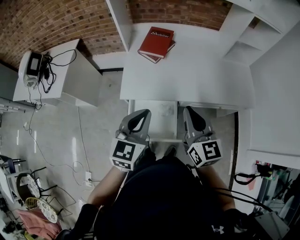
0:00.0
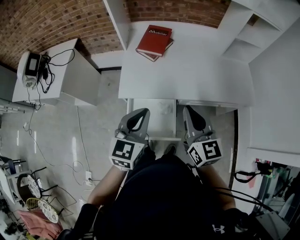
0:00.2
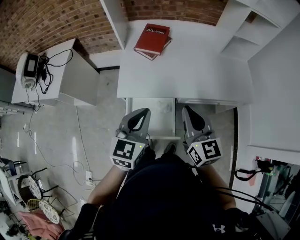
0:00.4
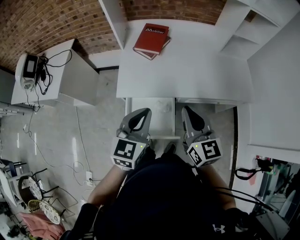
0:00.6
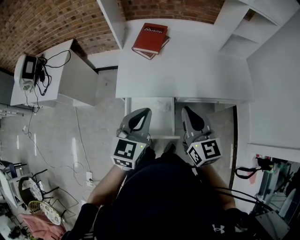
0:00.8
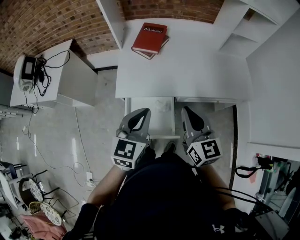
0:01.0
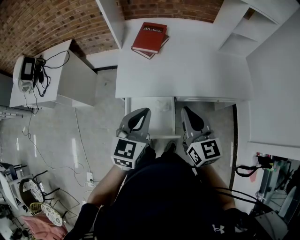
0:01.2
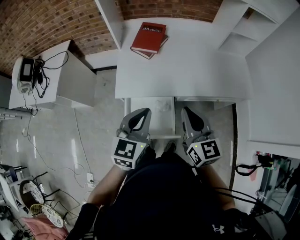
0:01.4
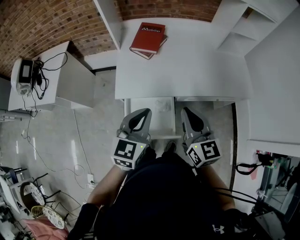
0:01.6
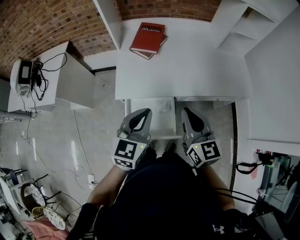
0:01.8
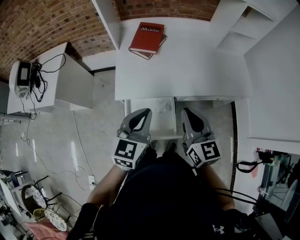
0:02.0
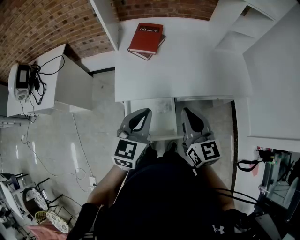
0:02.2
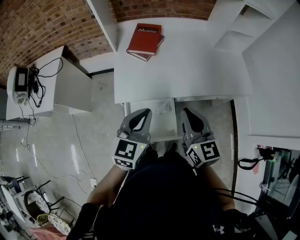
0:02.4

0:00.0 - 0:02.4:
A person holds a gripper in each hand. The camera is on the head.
0:00.0 - 0:02.4: The grippers move only a little.

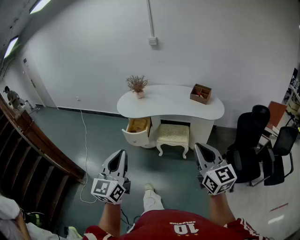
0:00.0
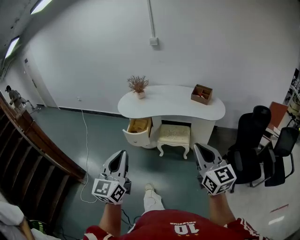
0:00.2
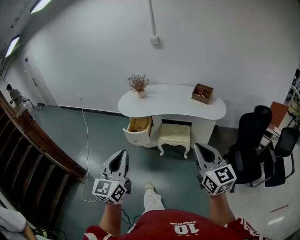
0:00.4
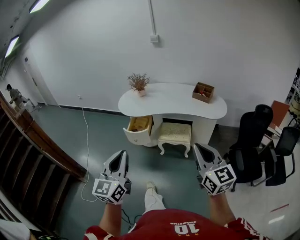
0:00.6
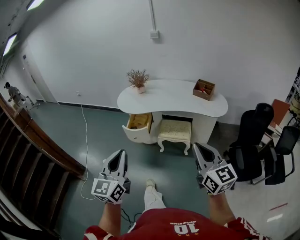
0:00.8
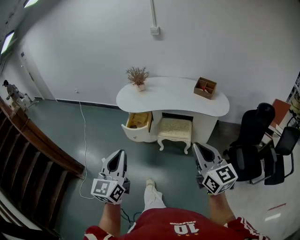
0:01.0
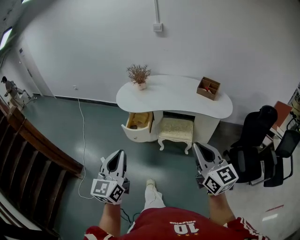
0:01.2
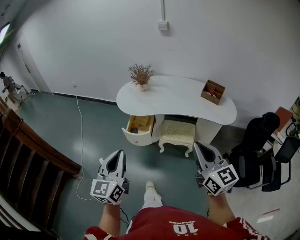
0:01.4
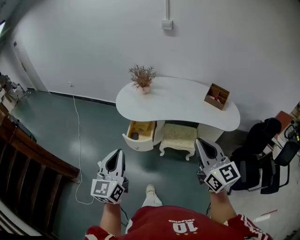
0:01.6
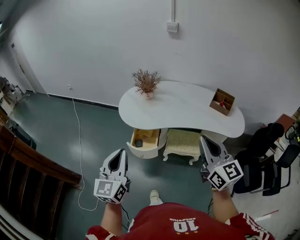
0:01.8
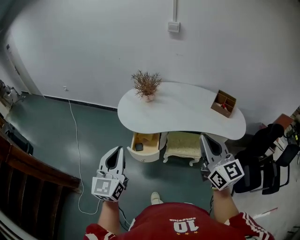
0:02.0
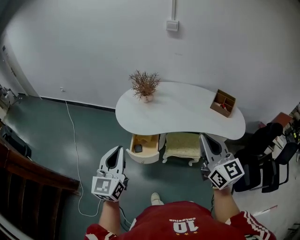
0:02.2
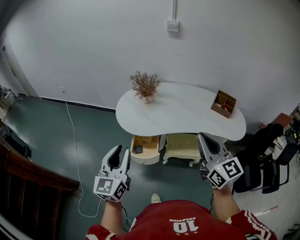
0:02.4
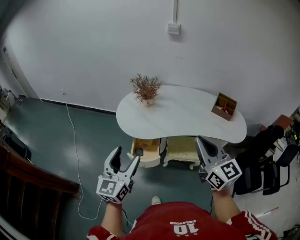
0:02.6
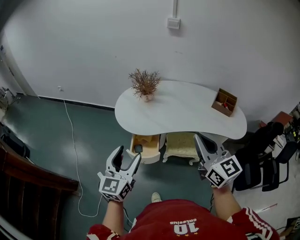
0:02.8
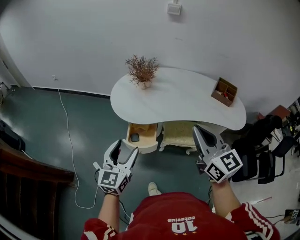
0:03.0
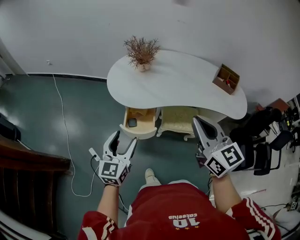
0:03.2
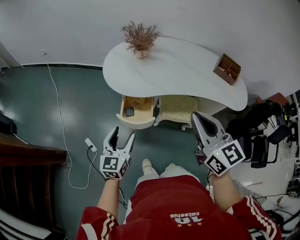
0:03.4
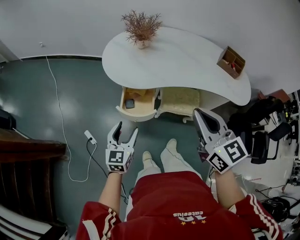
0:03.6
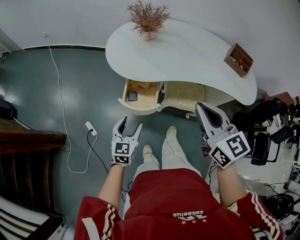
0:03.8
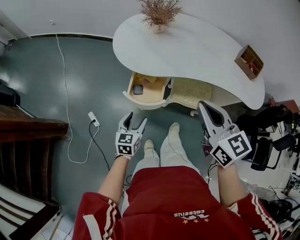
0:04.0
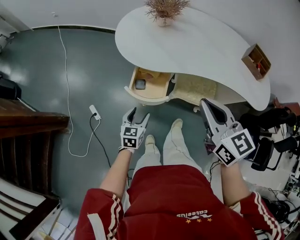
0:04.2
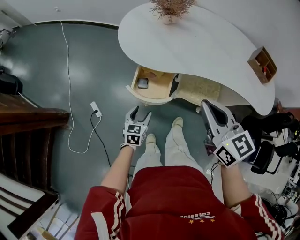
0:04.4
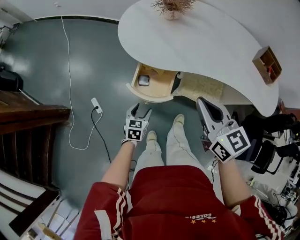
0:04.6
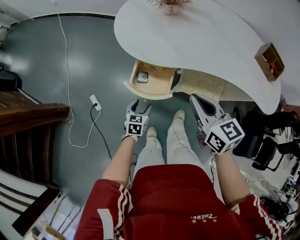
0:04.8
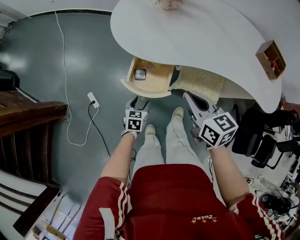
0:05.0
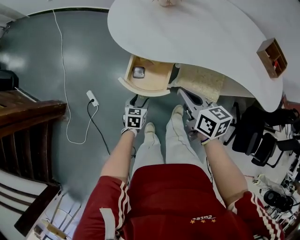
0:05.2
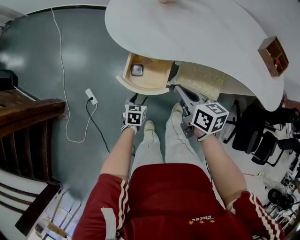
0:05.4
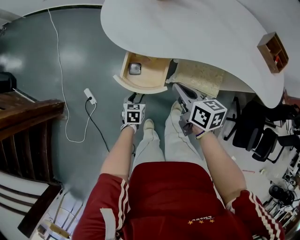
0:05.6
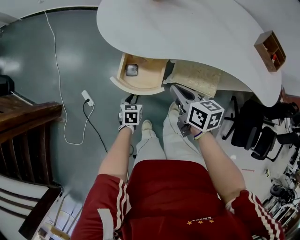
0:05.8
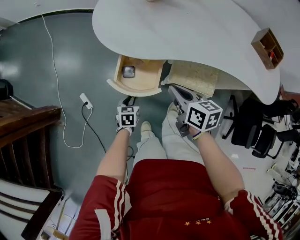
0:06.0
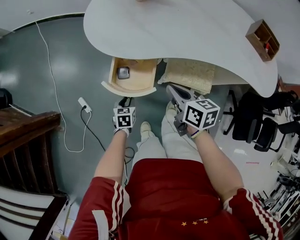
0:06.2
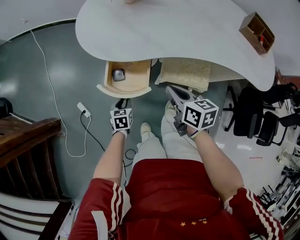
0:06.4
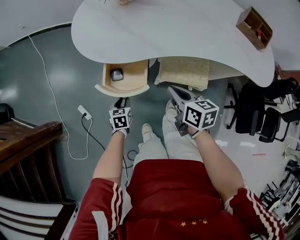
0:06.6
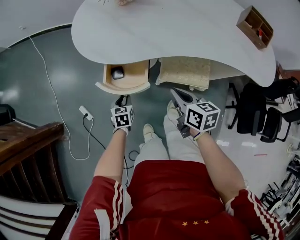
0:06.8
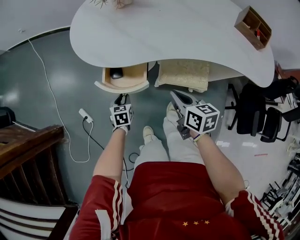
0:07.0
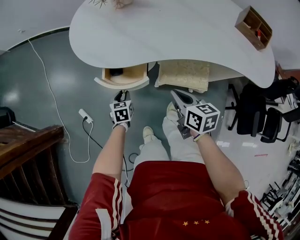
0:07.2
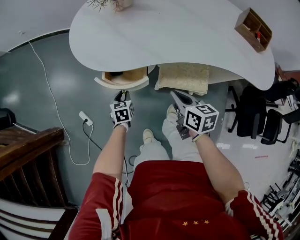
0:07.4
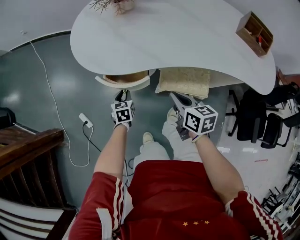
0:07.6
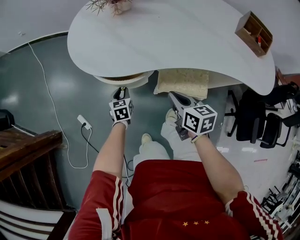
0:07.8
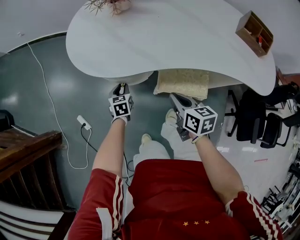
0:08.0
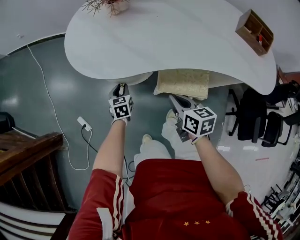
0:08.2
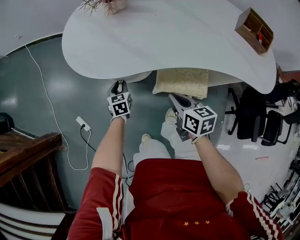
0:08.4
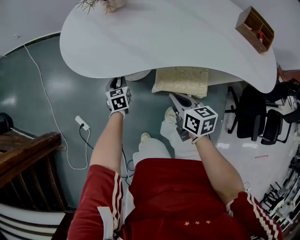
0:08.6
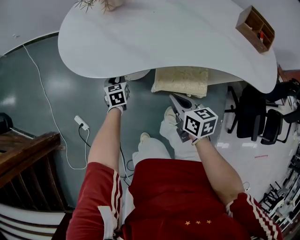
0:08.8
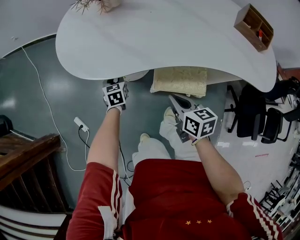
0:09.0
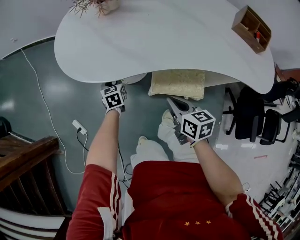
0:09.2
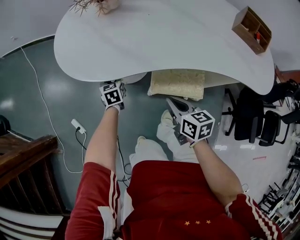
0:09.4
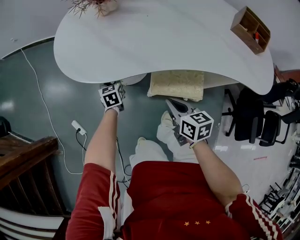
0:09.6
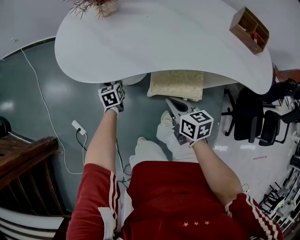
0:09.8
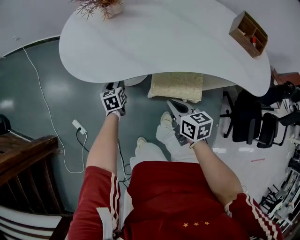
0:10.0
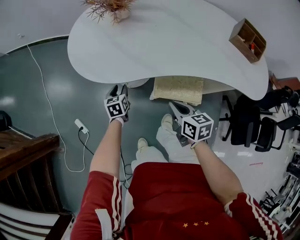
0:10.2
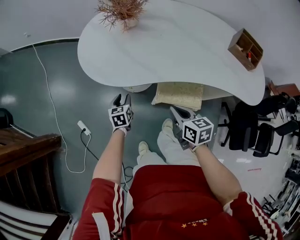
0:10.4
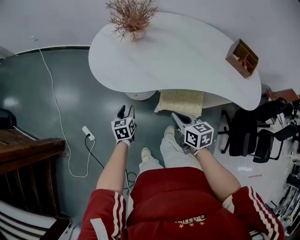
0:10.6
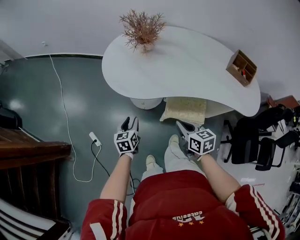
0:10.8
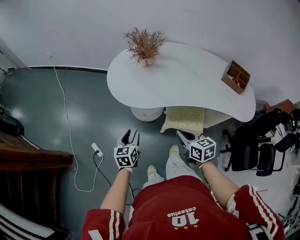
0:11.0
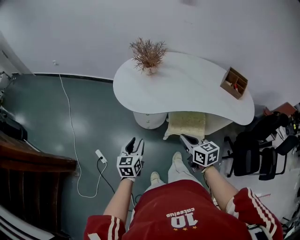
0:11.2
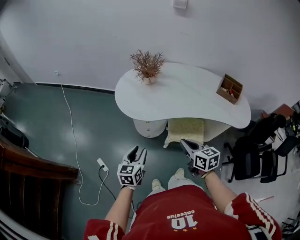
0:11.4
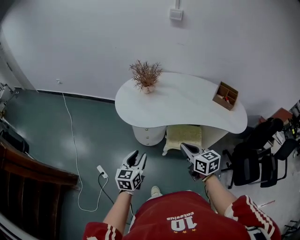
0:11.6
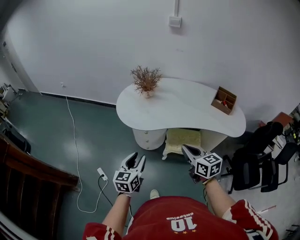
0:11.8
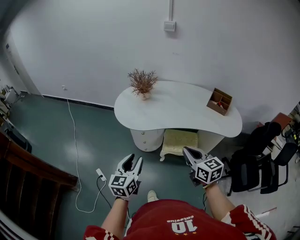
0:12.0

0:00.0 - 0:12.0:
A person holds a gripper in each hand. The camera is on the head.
0:00.0 - 0:01.6: Both grippers travel together forward, about 25 cm.
0:01.6 - 0:03.0: The right gripper travels forward and to the left by roughly 20 cm. The left gripper heads forward and downward, covering approximately 20 cm, and opens.
0:03.0 - 0:04.4: The left gripper heads downward, covering some 40 cm, and tips its fingers downward by approximately 30 degrees, while the right gripper heads downward, covering approximately 20 cm, and swivels about 20 degrees.
0:04.4 - 0:06.0: The left gripper heads downward, covering about 15 cm, and closes, while the right gripper moves downward, approximately 25 cm, and swivels about 30 degrees.
0:06.0 - 0:07.6: The left gripper goes some 10 cm forward; the right gripper heads to the right, covering roughly 10 cm.
0:07.6 - 0:09.0: The left gripper goes roughly 10 cm forward.
0:09.0 - 0:10.4: The right gripper is displaced upward by about 5 cm; the left gripper heads backward and upward, covering about 10 cm.
0:10.4 - 0:12.0: The two grippers go approximately 40 cm upward and backward. The right gripper turns by some 30 degrees, while the left gripper swivels roughly 30 degrees.

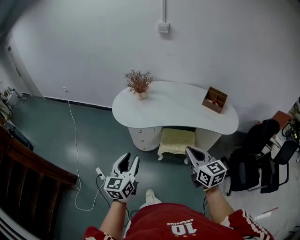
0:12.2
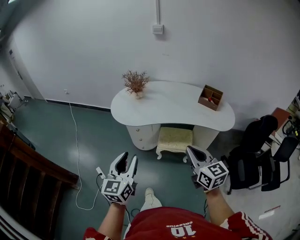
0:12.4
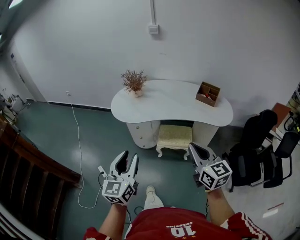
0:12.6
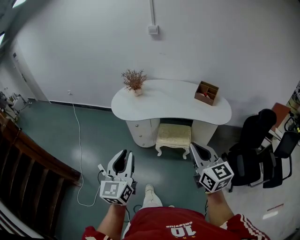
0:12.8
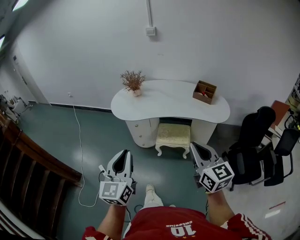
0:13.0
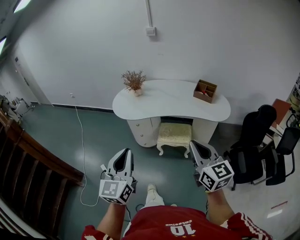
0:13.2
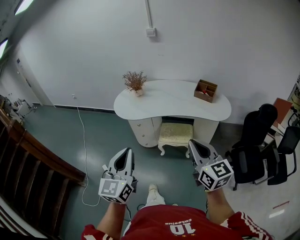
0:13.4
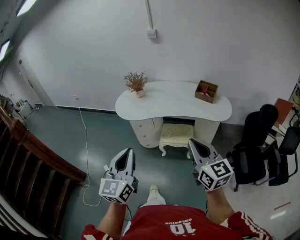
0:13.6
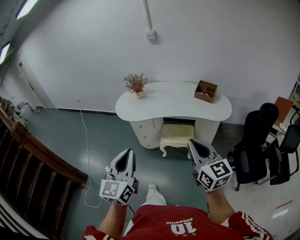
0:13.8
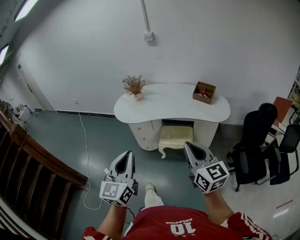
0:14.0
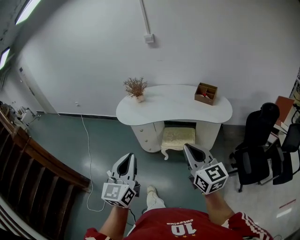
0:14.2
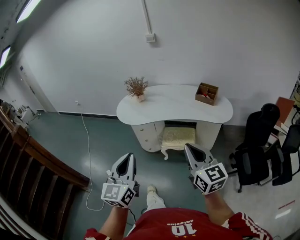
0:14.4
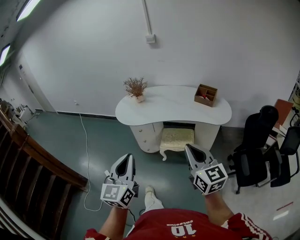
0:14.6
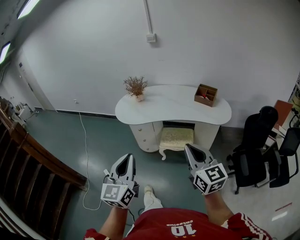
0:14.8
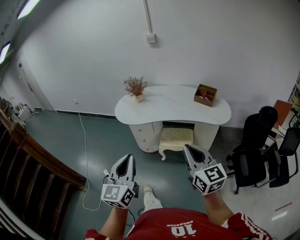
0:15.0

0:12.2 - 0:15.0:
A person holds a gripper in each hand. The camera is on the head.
0:12.2 - 0:13.6: Both grippers travel together backward, upward and to the right, some 25 cm. The left gripper closes up.
0:13.6 - 0:15.0: The grippers stay close to where they were, moving slightly.

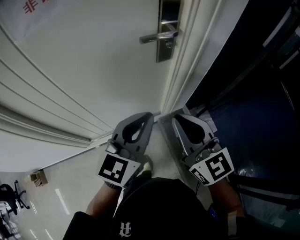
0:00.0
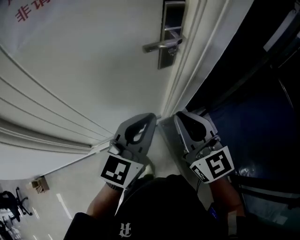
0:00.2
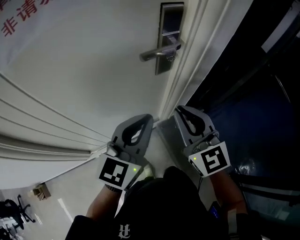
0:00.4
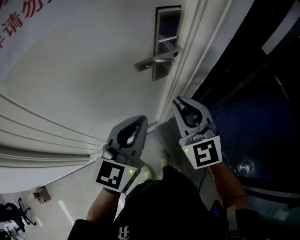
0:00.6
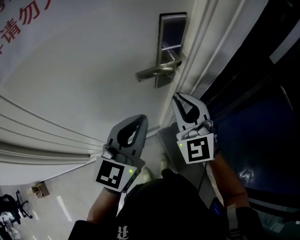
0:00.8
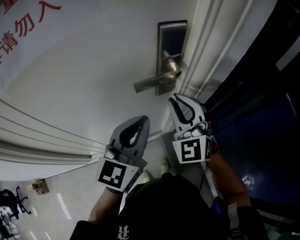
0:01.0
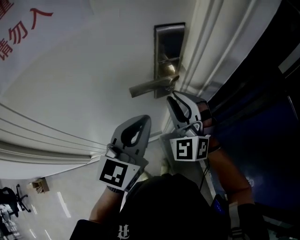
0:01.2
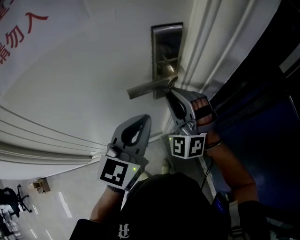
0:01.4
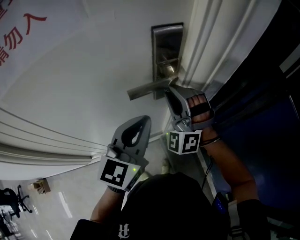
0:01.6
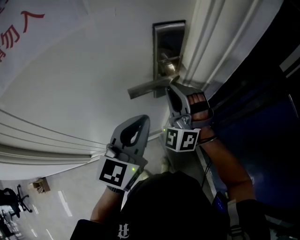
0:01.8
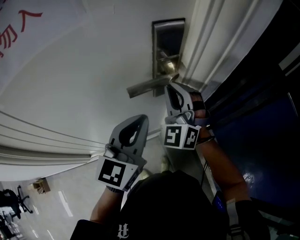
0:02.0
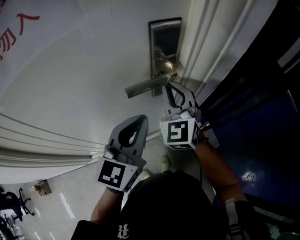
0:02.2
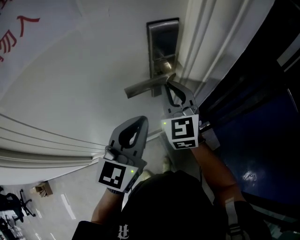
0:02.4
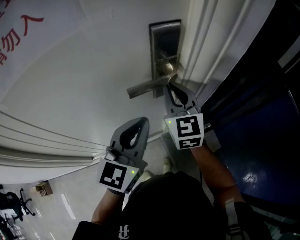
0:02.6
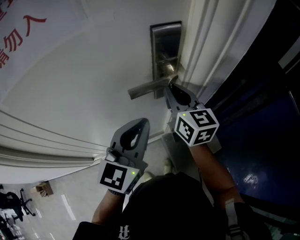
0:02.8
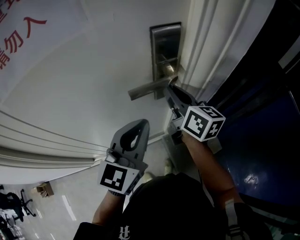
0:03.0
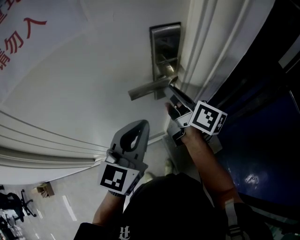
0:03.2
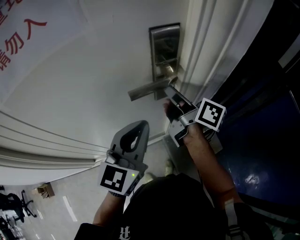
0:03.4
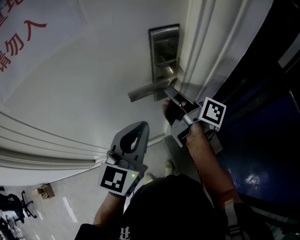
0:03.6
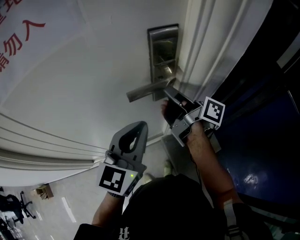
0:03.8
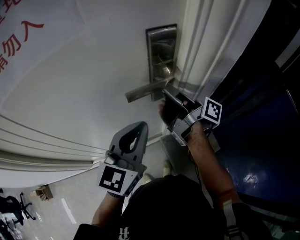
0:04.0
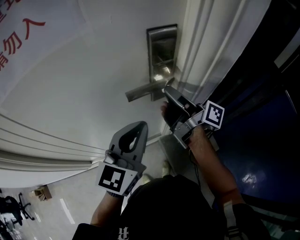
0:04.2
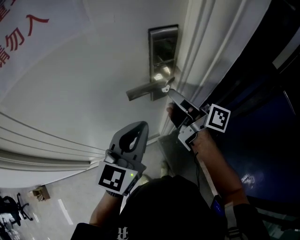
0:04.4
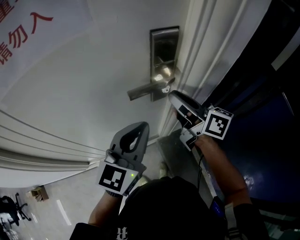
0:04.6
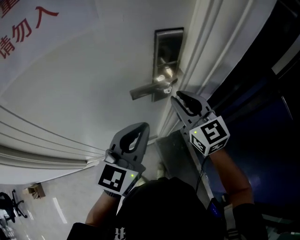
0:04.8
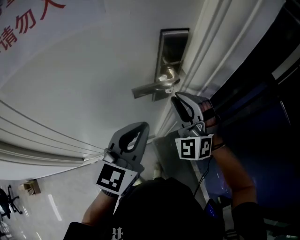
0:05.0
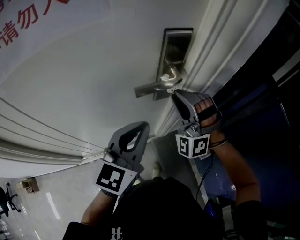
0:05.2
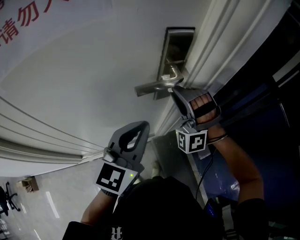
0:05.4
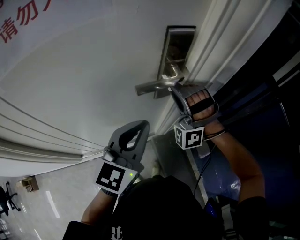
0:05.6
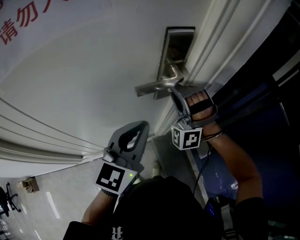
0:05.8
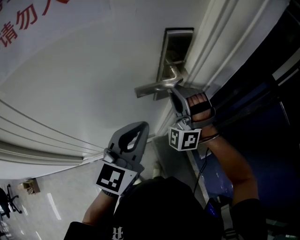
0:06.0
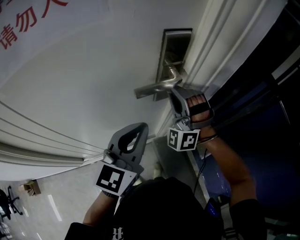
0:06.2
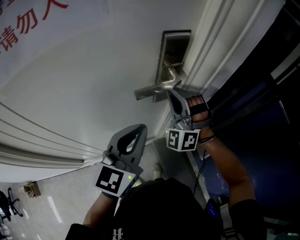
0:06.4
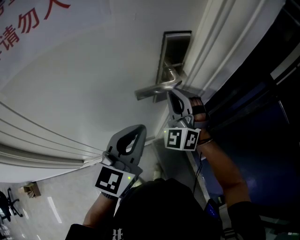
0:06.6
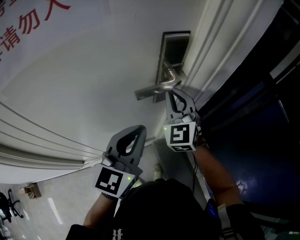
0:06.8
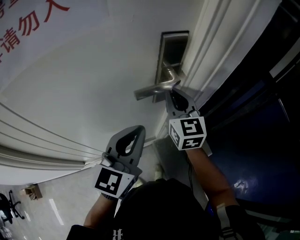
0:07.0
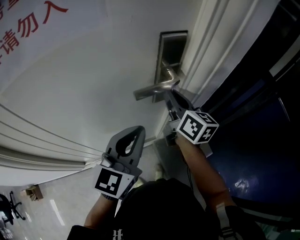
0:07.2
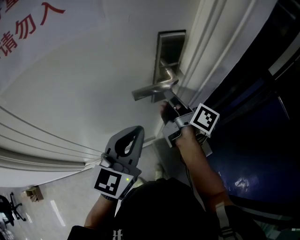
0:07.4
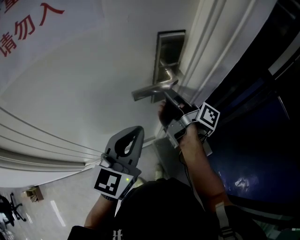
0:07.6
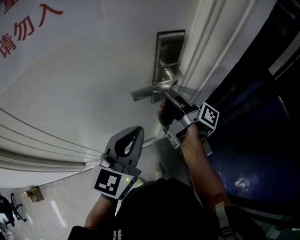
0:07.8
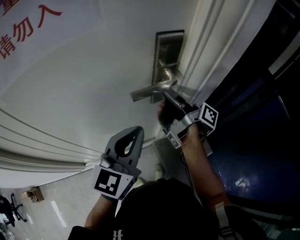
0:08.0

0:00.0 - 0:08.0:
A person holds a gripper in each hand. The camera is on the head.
0:00.0 - 0:01.6: The left gripper moves forward, roughly 15 cm, while the right gripper is displaced forward by about 25 cm, and twists roughly 70 degrees counterclockwise, seen from behind.
0:01.6 - 0:03.2: The right gripper rolls clockwise, seen from behind, by about 120 degrees.
0:03.2 - 0:04.8: The right gripper twists approximately 60 degrees counterclockwise, seen from behind.
0:04.8 - 0:06.4: The right gripper rolls counterclockwise, seen from behind, by about 70 degrees.
0:06.4 - 0:08.0: The right gripper swivels some 170 degrees.
